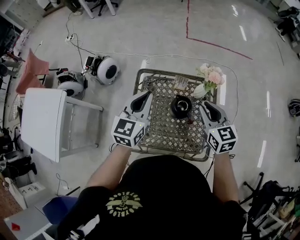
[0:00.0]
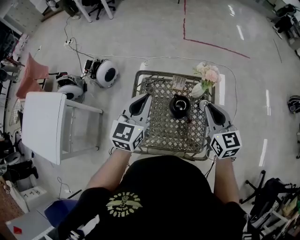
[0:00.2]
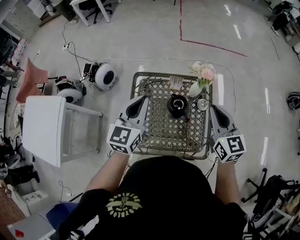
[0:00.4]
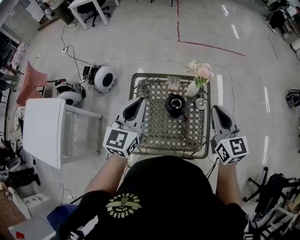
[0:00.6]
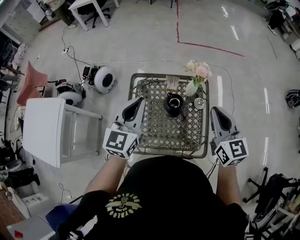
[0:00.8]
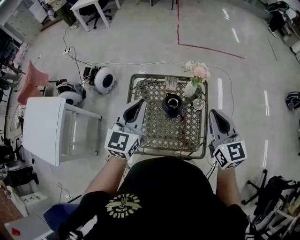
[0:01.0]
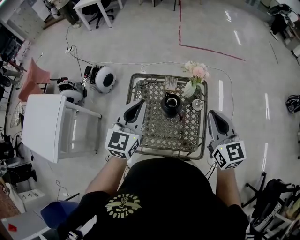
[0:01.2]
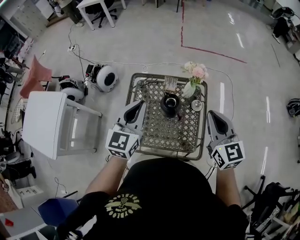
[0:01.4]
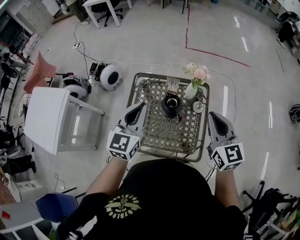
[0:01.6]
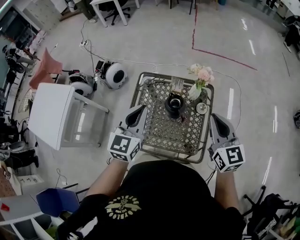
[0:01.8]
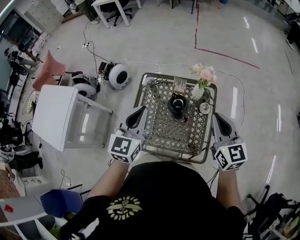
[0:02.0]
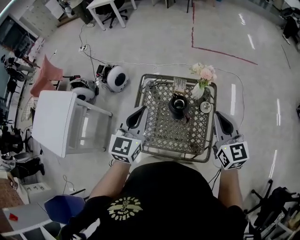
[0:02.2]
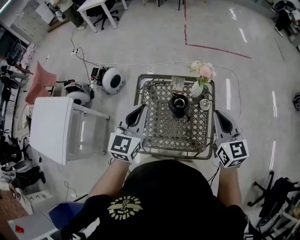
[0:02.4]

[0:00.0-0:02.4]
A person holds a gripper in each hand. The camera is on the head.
0:00.0 to 0:01.2: The right gripper is displaced backward, upward and to the right by roughly 15 cm; the left gripper moves backward and upward, about 10 cm.
0:01.2 to 0:02.4: The grippers move only a little.

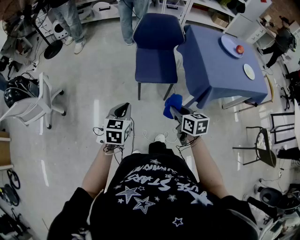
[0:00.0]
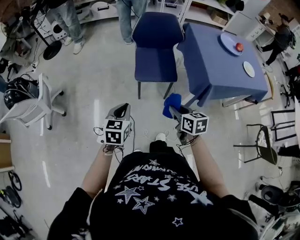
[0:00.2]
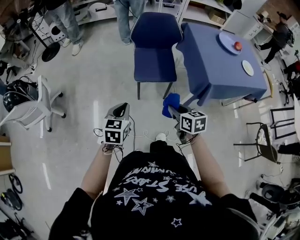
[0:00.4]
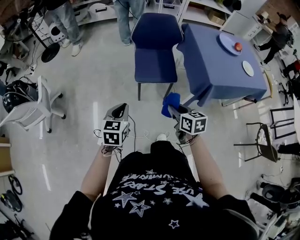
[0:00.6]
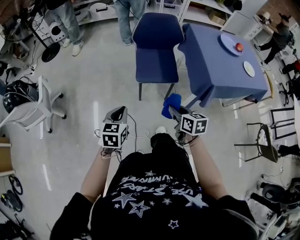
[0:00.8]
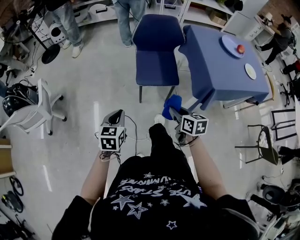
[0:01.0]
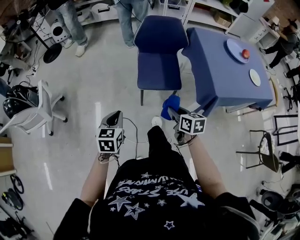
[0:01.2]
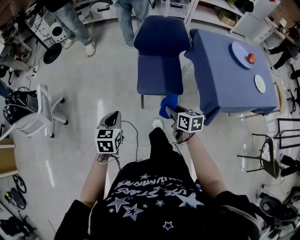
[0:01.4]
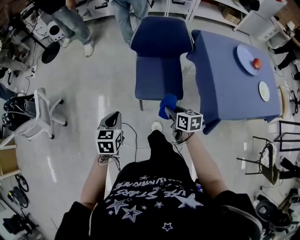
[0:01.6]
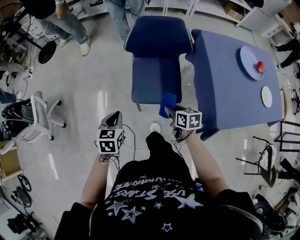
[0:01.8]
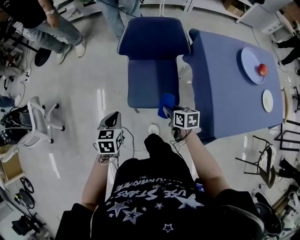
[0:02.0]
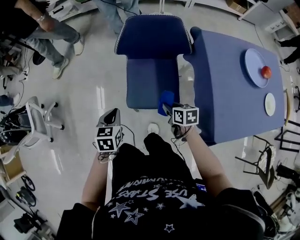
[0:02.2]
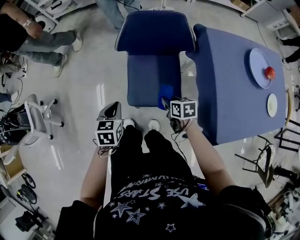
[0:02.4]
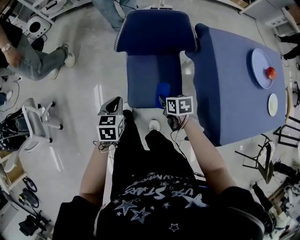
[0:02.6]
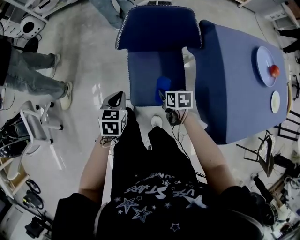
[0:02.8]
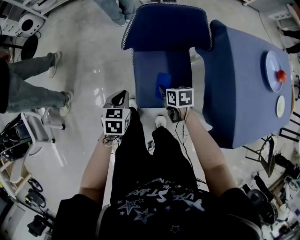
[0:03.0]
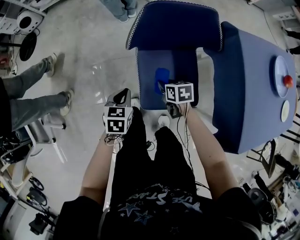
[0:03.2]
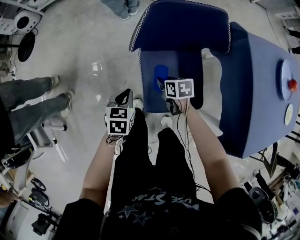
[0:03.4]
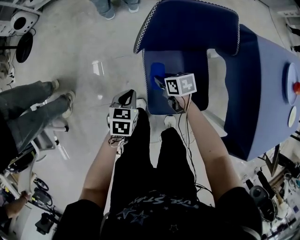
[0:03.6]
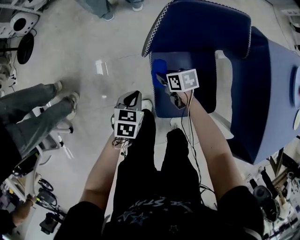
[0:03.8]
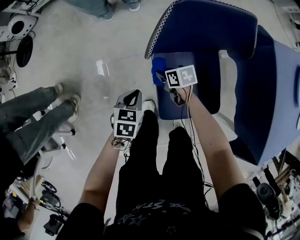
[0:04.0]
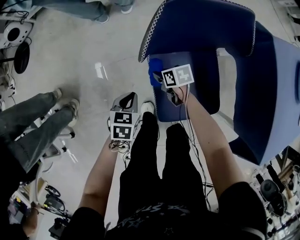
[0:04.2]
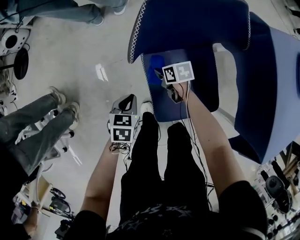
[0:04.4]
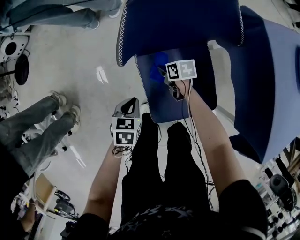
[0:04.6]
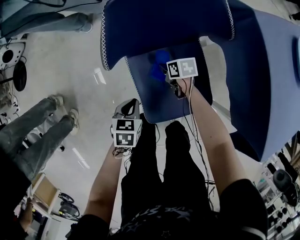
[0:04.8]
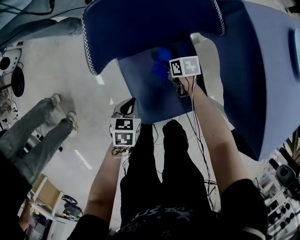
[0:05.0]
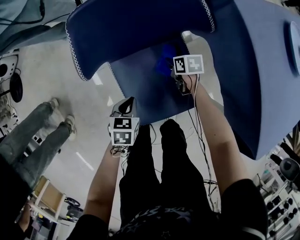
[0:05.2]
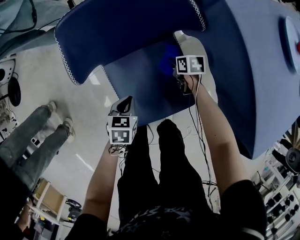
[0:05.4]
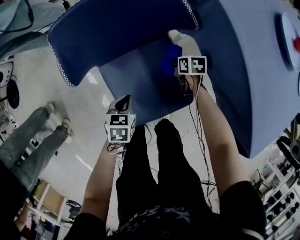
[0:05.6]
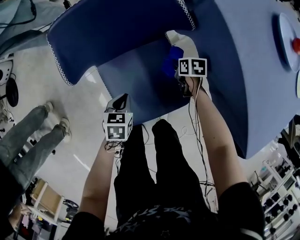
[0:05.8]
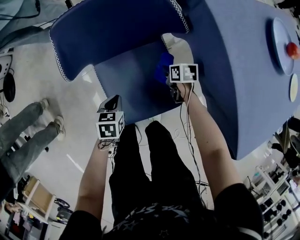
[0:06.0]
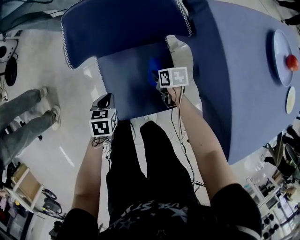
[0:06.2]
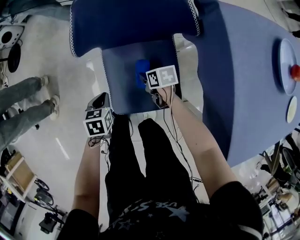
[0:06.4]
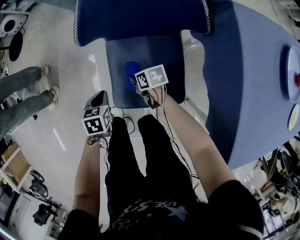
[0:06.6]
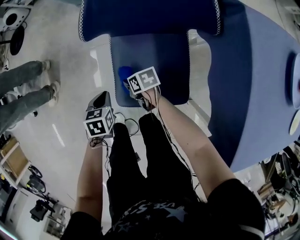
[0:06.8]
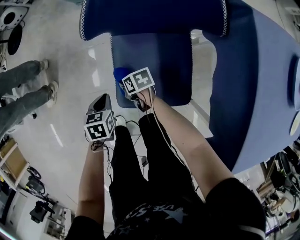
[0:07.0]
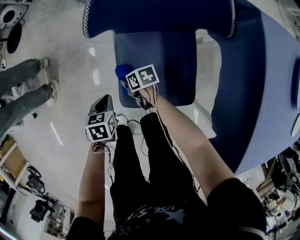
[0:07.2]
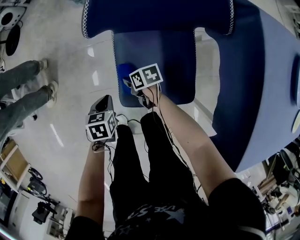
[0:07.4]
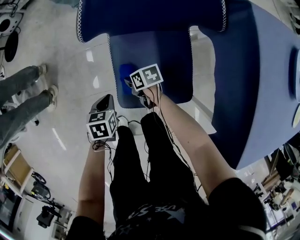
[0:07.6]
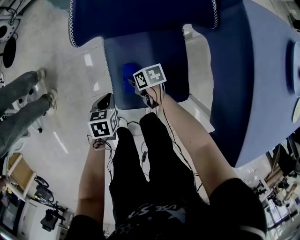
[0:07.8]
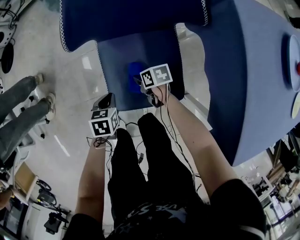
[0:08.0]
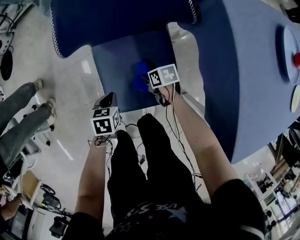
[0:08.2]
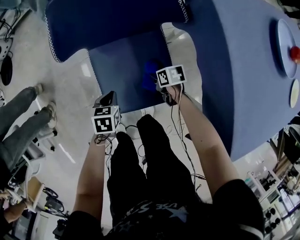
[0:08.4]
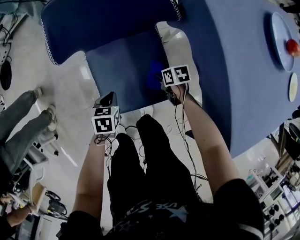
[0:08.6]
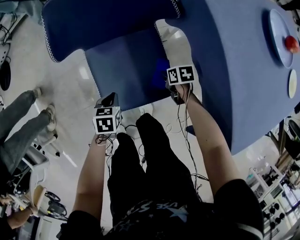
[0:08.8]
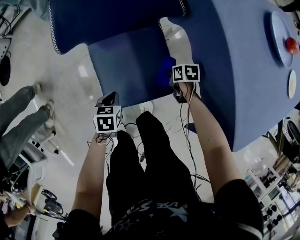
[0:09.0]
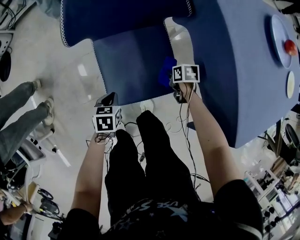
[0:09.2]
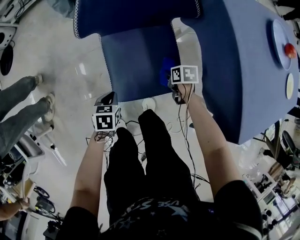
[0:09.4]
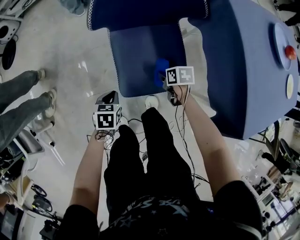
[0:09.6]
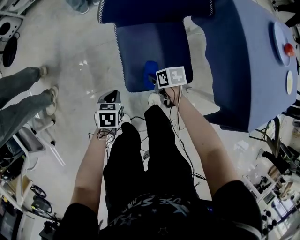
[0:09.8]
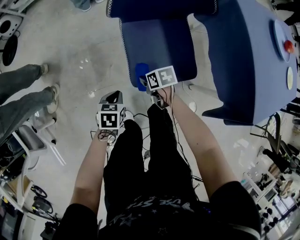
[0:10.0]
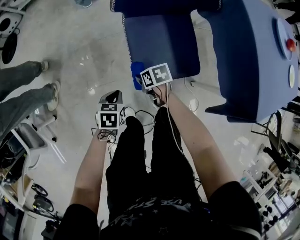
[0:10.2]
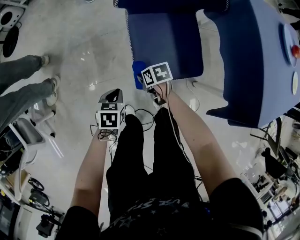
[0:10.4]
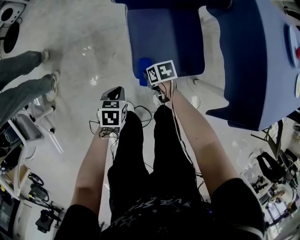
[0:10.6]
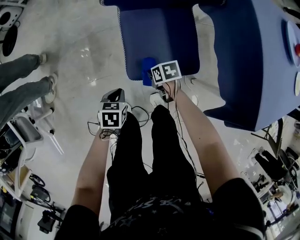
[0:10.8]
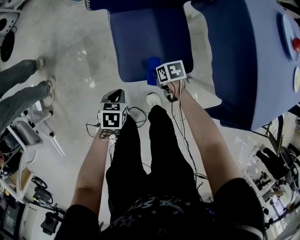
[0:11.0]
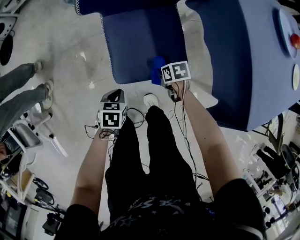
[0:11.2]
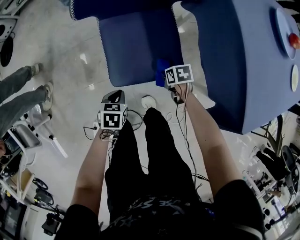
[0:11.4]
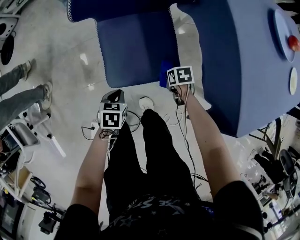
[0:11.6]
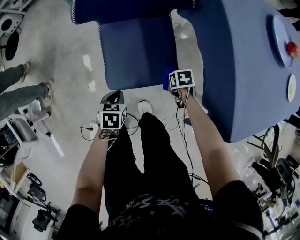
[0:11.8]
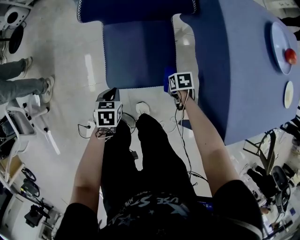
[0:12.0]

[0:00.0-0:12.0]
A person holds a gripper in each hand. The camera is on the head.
0:00.0 to 0:01.6: The two grippers go roughly 20 cm forward.
0:01.6 to 0:03.0: Both grippers move forward and downward, approximately 30 cm.
0:03.0 to 0:04.4: The right gripper goes roughly 25 cm forward, downward and to the left, while the left gripper moves downward and forward, about 15 cm.
0:04.4 to 0:06.0: The left gripper heads to the right, covering approximately 15 cm; the right gripper shifts about 30 cm to the right.
0:06.0 to 0:07.6: The right gripper ends up roughly 30 cm from where it was, and changes its angle by about 30 degrees. The left gripper ends up about 15 cm from where it was, and swivels some 20 degrees.
0:07.6 to 0:09.0: The left gripper travels to the right by about 10 cm. Meanwhile the right gripper heads to the right, covering some 30 cm, and rotates approximately 30 degrees.
0:09.0 to 0:10.4: The left gripper is displaced to the left by approximately 20 cm. The right gripper heads to the left, covering about 35 cm, and swivels approximately 20 degrees.
0:10.4 to 0:12.0: The left gripper changes place by some 15 cm; the right gripper changes place by some 30 cm.

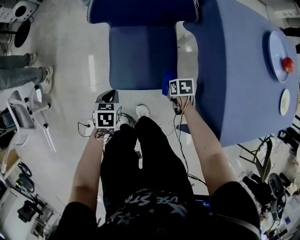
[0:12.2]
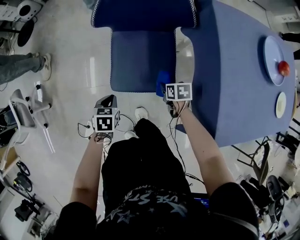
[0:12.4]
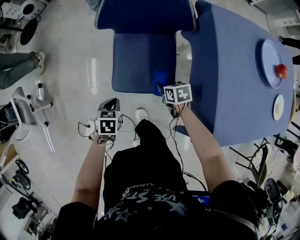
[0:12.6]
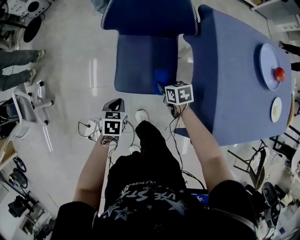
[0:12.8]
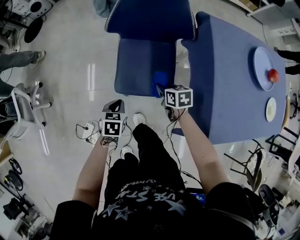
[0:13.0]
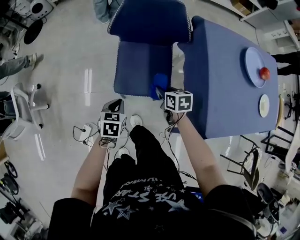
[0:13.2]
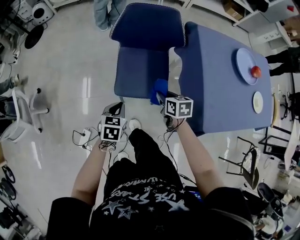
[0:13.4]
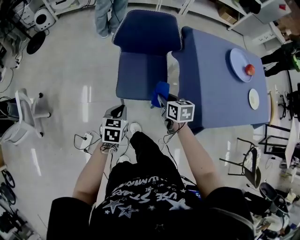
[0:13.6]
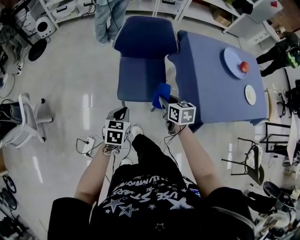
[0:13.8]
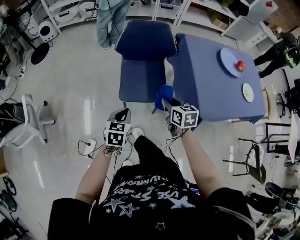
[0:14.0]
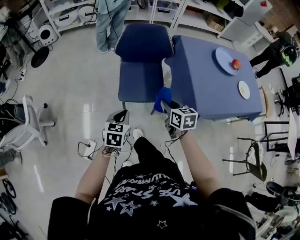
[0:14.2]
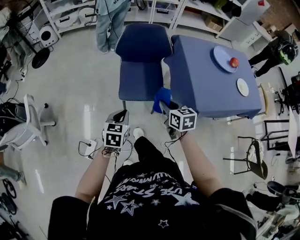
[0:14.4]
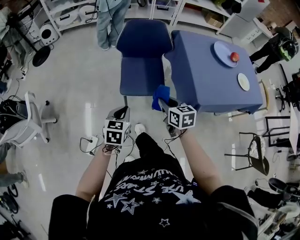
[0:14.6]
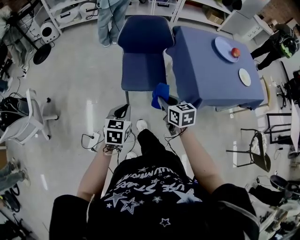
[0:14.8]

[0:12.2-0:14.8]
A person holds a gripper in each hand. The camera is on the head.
0:12.2 to 0:13.4: The right gripper is displaced upward by roughly 25 cm, and turns by approximately 30 degrees, while the left gripper shifts roughly 15 cm upward and backward.
0:13.4 to 0:14.8: The two grippers go approximately 25 cm backward and upward.

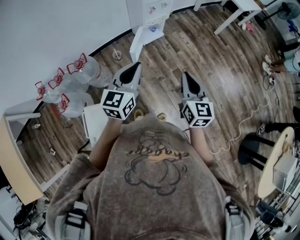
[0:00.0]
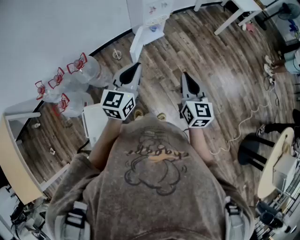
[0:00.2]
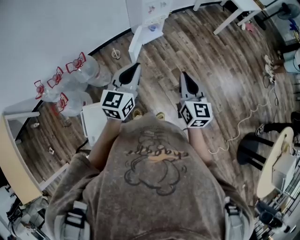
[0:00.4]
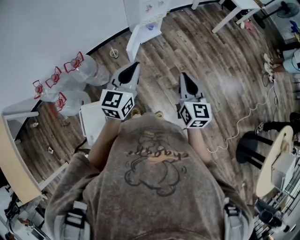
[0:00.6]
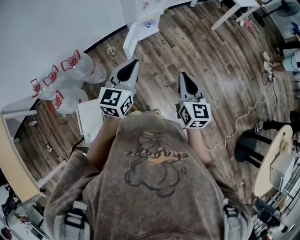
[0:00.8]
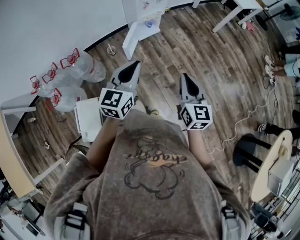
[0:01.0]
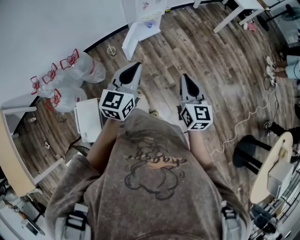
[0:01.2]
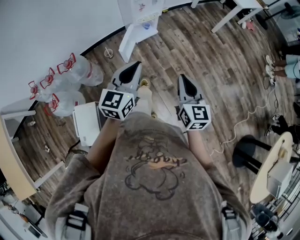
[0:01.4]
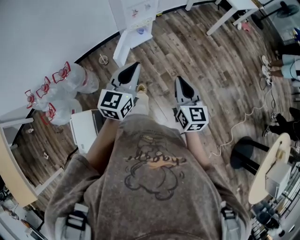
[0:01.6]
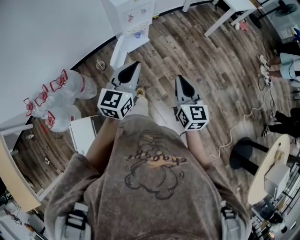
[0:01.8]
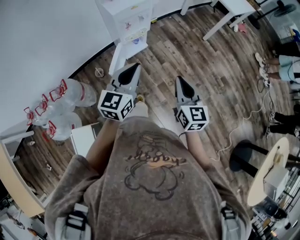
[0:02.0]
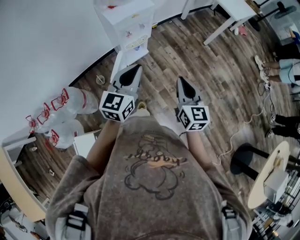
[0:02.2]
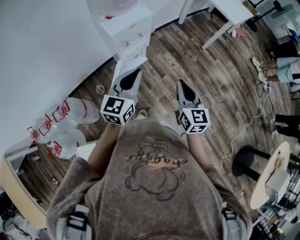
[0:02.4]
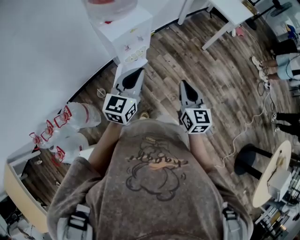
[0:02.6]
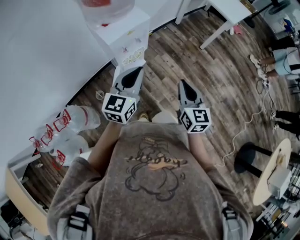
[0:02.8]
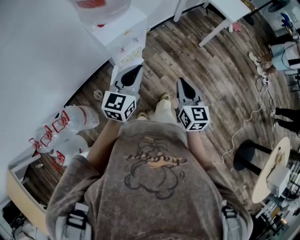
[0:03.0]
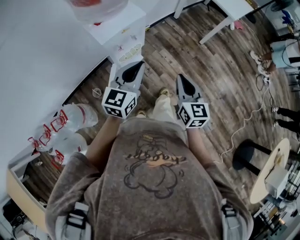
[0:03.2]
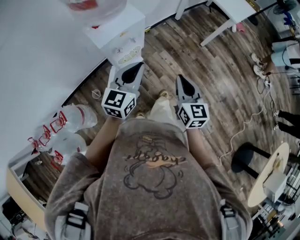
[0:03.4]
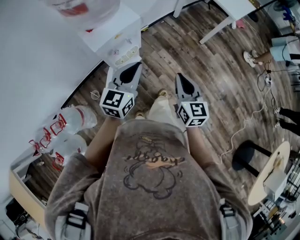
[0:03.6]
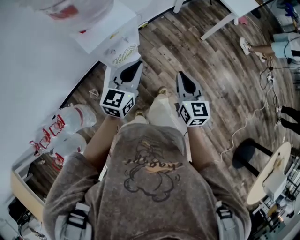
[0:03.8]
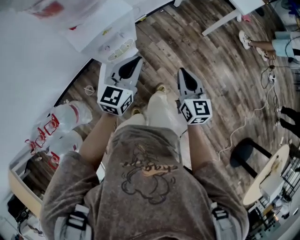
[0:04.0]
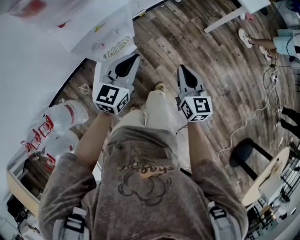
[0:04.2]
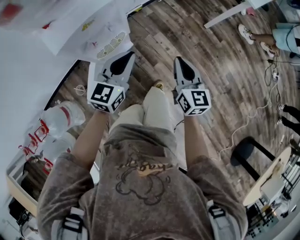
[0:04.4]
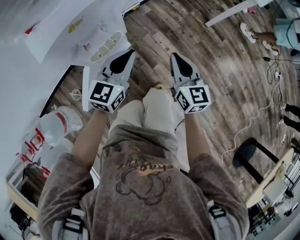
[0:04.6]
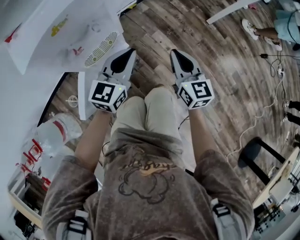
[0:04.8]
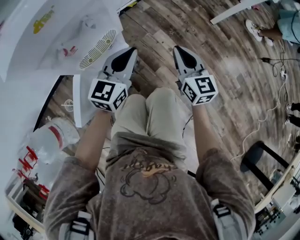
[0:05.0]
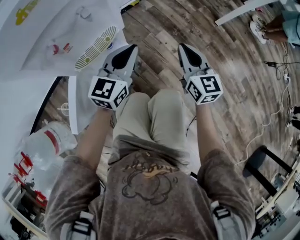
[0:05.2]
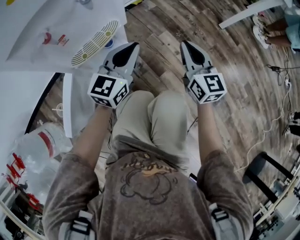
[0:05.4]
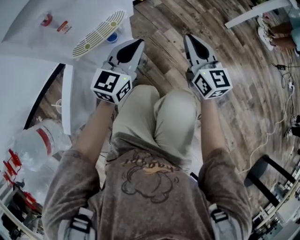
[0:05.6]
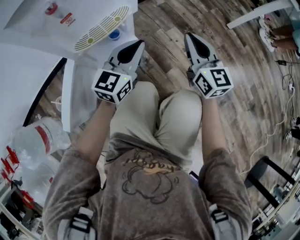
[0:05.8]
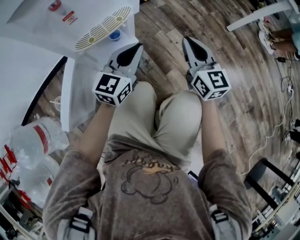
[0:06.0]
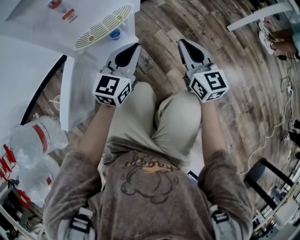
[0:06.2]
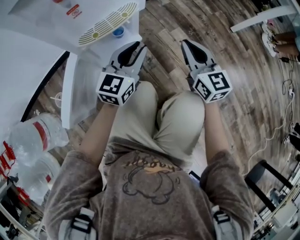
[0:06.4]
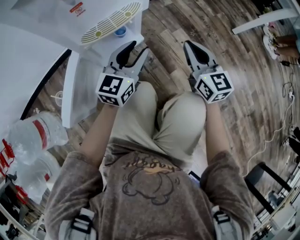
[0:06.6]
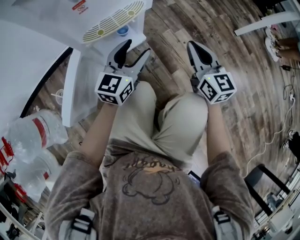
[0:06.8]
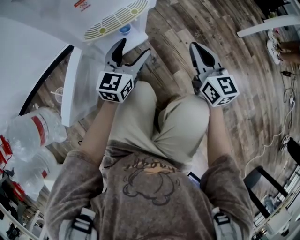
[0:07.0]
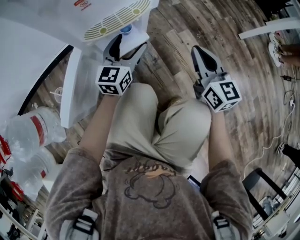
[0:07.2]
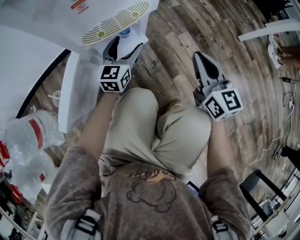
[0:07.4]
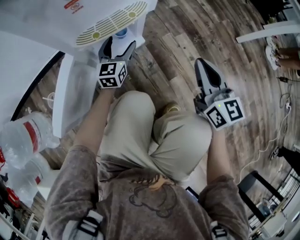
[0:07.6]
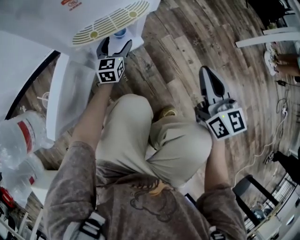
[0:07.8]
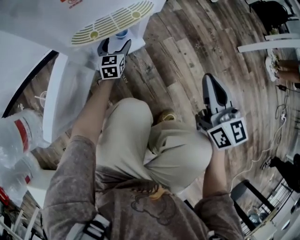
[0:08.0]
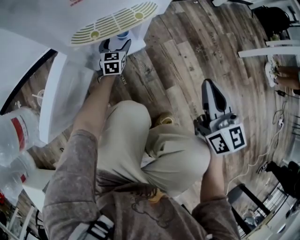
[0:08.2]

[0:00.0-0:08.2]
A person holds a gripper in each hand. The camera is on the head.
0:00.0 to 0:01.6: The two grippers go roughly 15 cm to the right and forward.
0:01.6 to 0:03.2: Both grippers travel together forward, approximately 35 cm.
0:03.2 to 0:05.0: The grippers both shift downward and forward by approximately 50 cm.
0:05.0 to 0:06.6: The right gripper travels downward and to the left by about 15 cm. The left gripper moves downward, some 20 cm, and opens.
0:06.6 to 0:08.2: The left gripper is displaced downward and forward by roughly 30 cm, swivels some 30 degrees, and opens its fingers.
